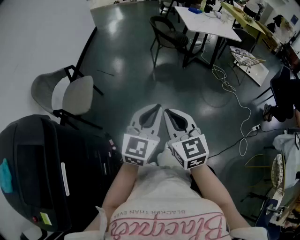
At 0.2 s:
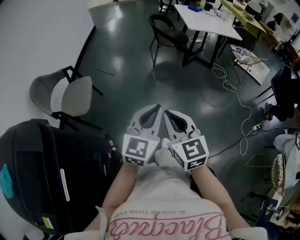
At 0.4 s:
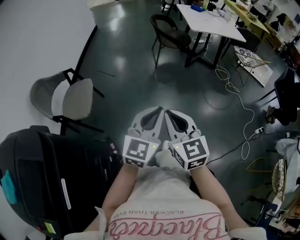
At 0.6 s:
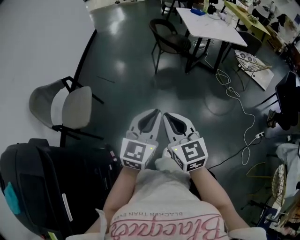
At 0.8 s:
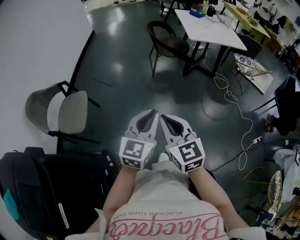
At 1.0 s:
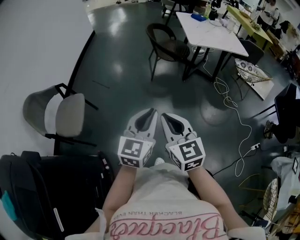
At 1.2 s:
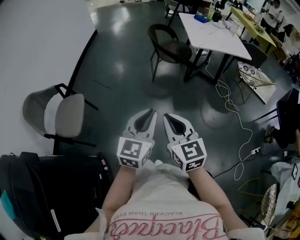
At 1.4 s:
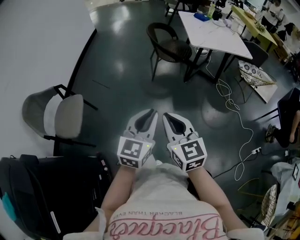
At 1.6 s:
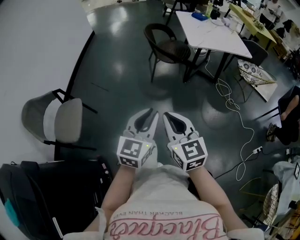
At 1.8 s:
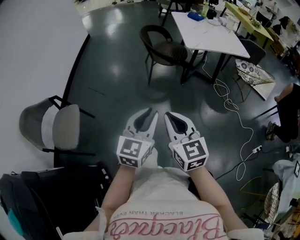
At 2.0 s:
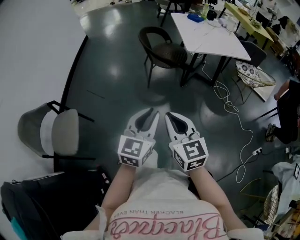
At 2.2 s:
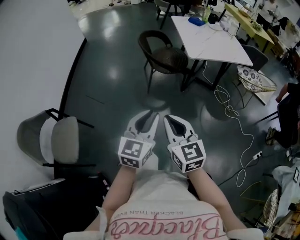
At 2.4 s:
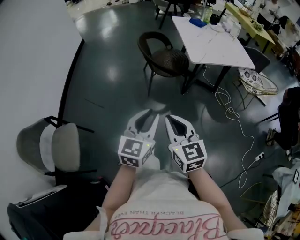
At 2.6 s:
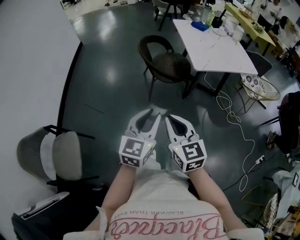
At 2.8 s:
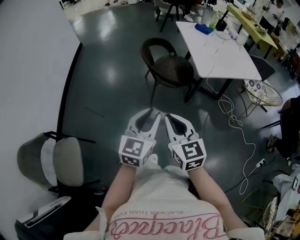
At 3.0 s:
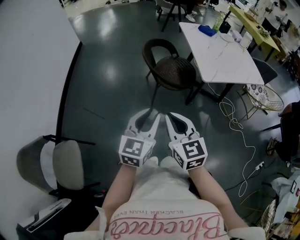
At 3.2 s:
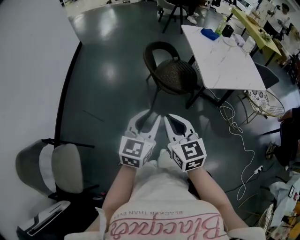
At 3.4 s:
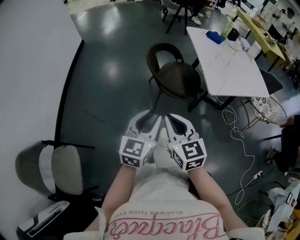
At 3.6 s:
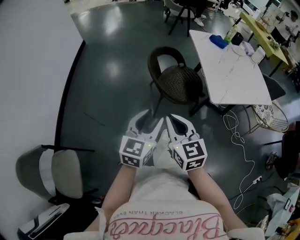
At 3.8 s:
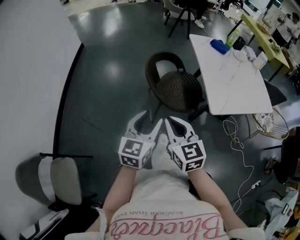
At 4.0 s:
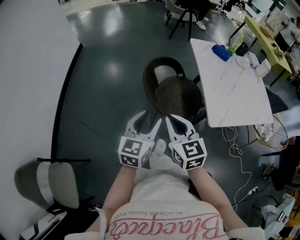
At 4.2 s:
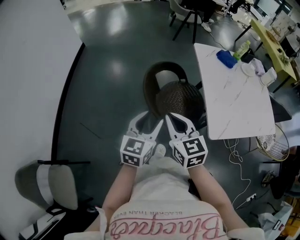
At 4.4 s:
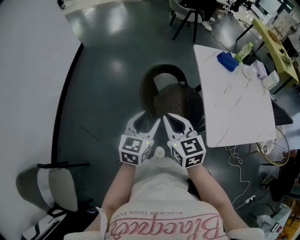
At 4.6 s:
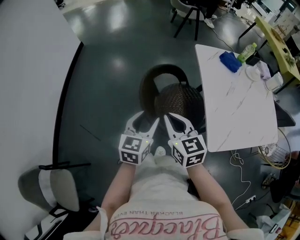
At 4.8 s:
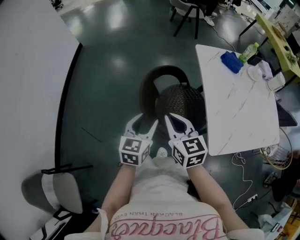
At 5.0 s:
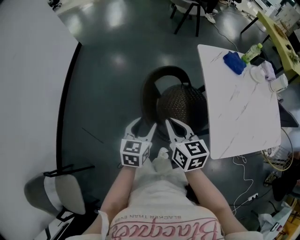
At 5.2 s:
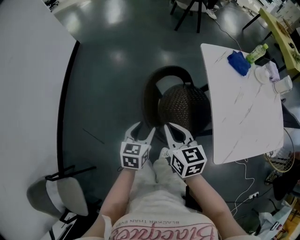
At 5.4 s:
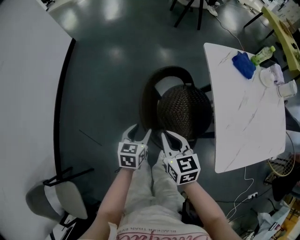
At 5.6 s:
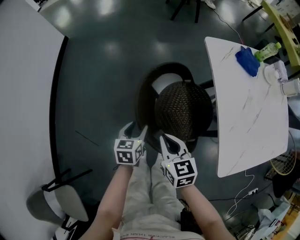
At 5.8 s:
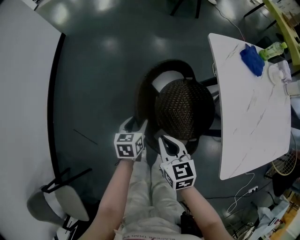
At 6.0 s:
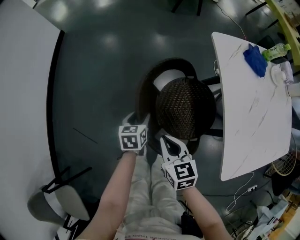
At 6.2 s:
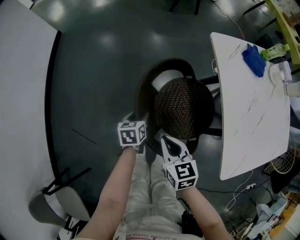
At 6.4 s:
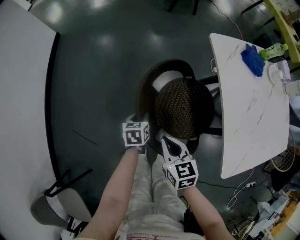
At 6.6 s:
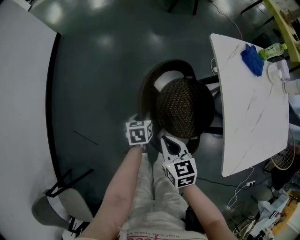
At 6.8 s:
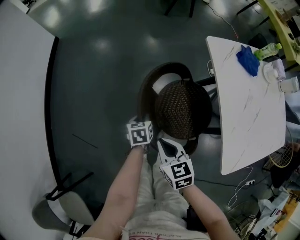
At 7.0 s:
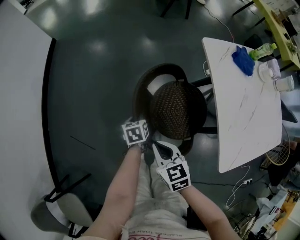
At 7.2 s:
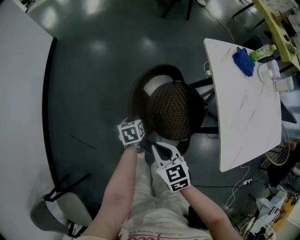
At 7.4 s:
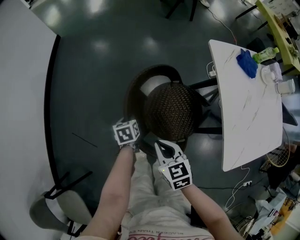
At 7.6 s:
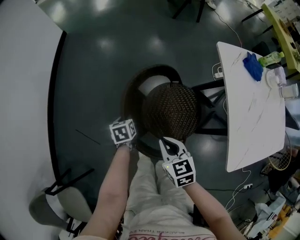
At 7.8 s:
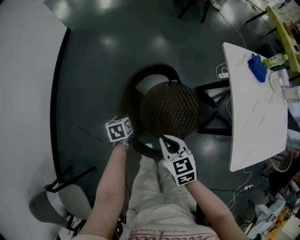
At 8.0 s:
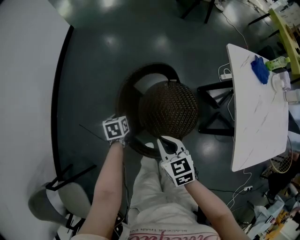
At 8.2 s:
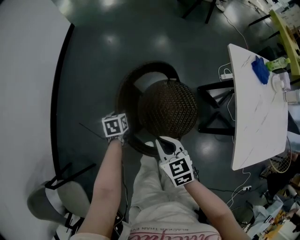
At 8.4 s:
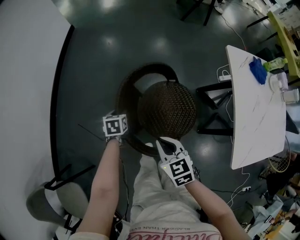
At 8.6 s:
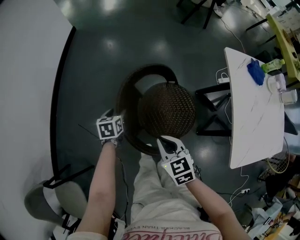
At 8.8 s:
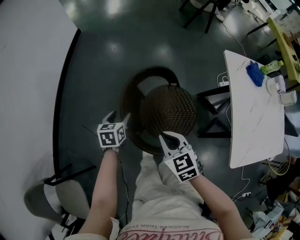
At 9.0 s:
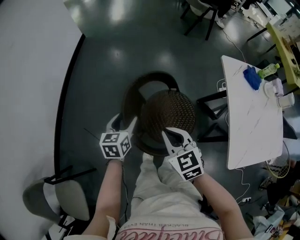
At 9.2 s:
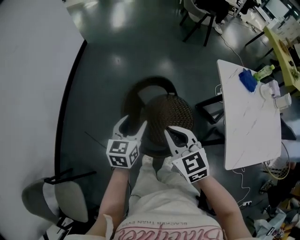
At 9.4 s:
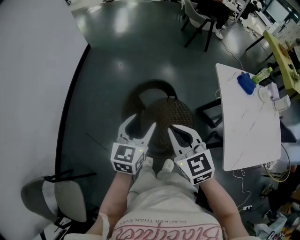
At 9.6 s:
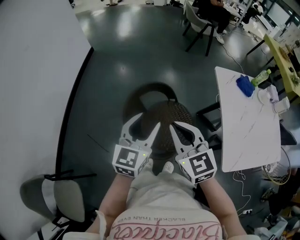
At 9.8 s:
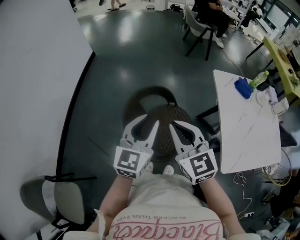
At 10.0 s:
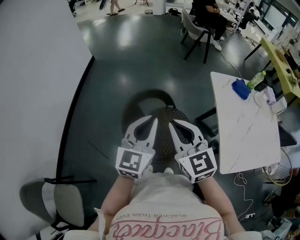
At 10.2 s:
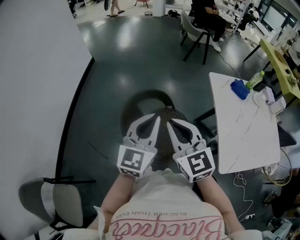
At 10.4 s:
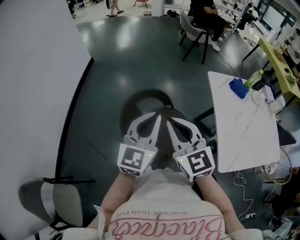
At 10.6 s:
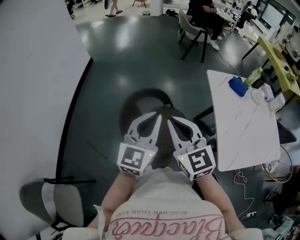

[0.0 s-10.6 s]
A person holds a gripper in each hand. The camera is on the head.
0.0 to 1.6 s: Both grippers travel together forward, some 30 cm.
1.6 to 3.0 s: The two grippers travel together, forward, about 40 cm.
3.0 to 4.6 s: The two grippers travel together, forward, approximately 40 cm. The left gripper opens its fingers.
4.6 to 6.0 s: Both grippers travel together downward and forward, approximately 30 cm. The left gripper swivels roughly 30 degrees.
6.0 to 7.6 s: The left gripper heads to the left, covering roughly 15 cm, and closes. Meanwhile the right gripper goes some 10 cm to the left.
7.6 to 9.0 s: The right gripper travels upward and to the left by about 10 cm, and changes its angle by roughly 20 degrees. The left gripper shifts approximately 20 cm upward, swivels about 30 degrees, and opens.
9.0 to 10.6 s: The left gripper shifts some 30 cm upward and to the right, points its fingers about 30 degrees further upward, and closes; the right gripper is displaced upward by approximately 15 cm, and swivels some 30 degrees.

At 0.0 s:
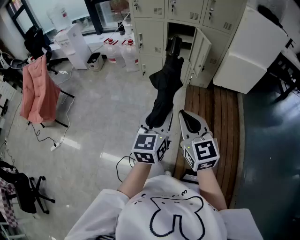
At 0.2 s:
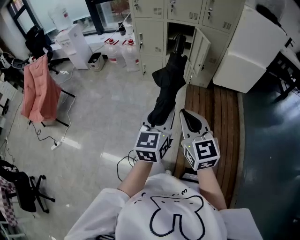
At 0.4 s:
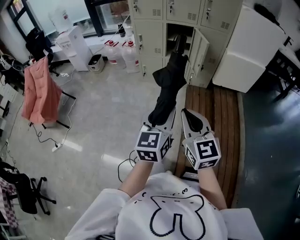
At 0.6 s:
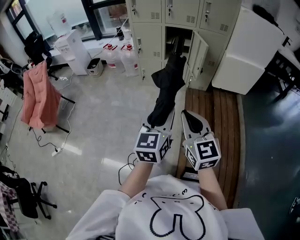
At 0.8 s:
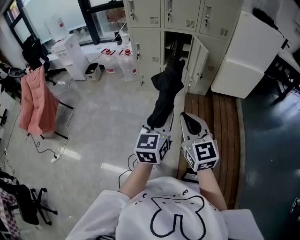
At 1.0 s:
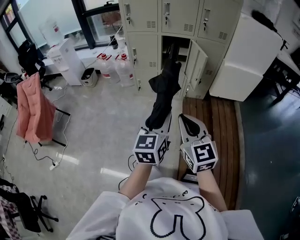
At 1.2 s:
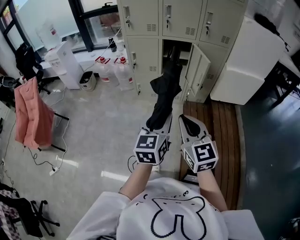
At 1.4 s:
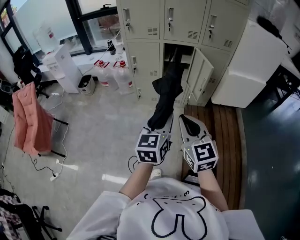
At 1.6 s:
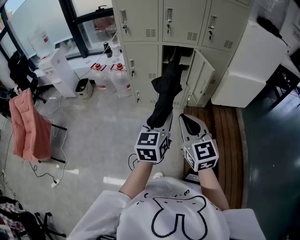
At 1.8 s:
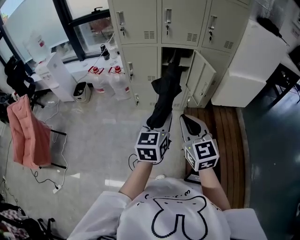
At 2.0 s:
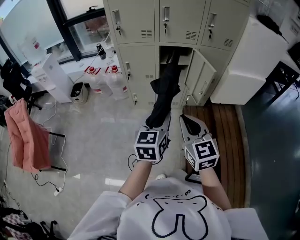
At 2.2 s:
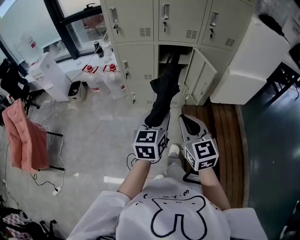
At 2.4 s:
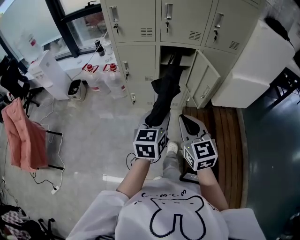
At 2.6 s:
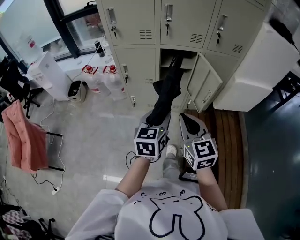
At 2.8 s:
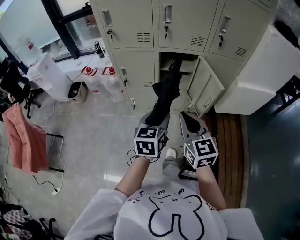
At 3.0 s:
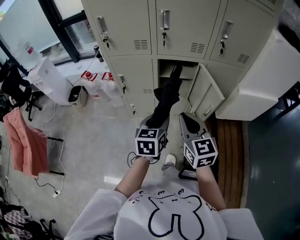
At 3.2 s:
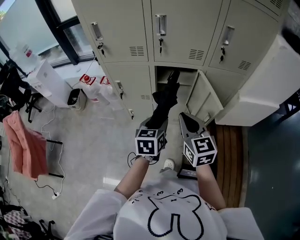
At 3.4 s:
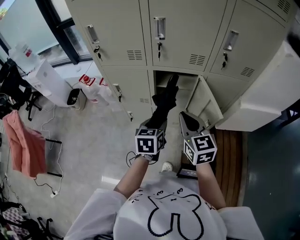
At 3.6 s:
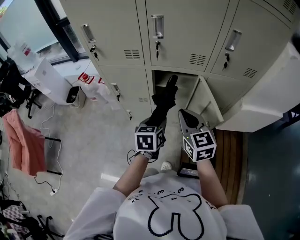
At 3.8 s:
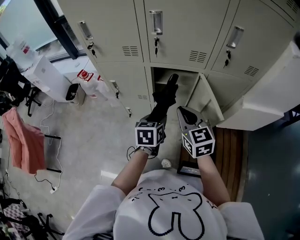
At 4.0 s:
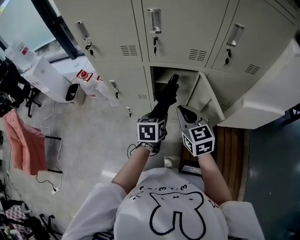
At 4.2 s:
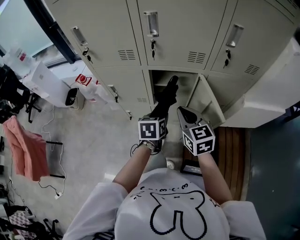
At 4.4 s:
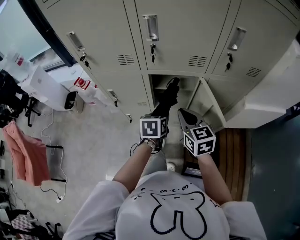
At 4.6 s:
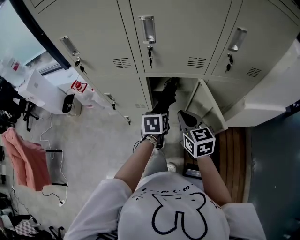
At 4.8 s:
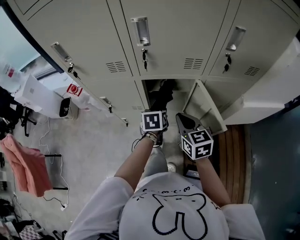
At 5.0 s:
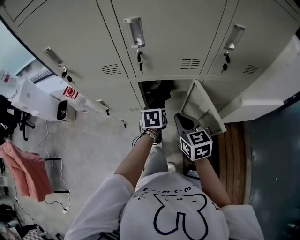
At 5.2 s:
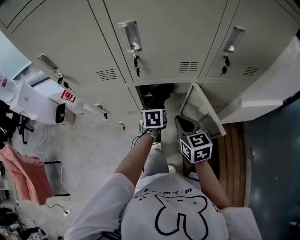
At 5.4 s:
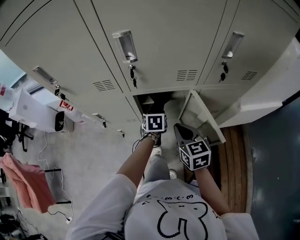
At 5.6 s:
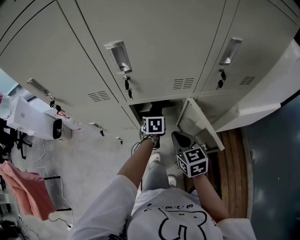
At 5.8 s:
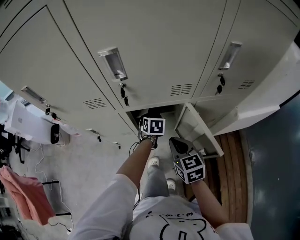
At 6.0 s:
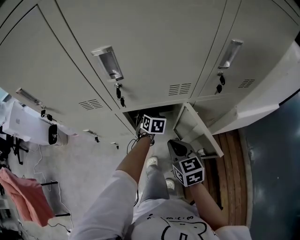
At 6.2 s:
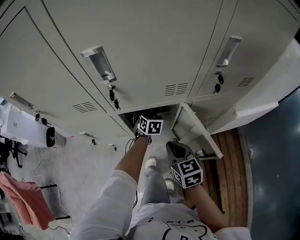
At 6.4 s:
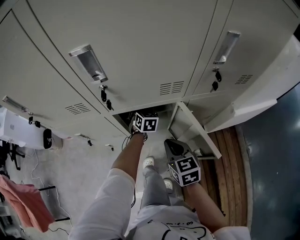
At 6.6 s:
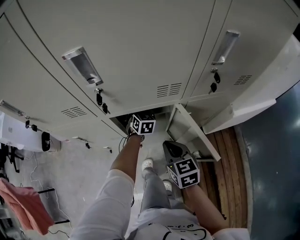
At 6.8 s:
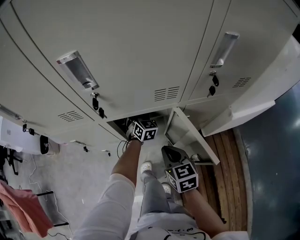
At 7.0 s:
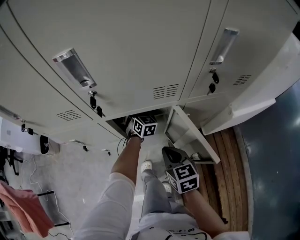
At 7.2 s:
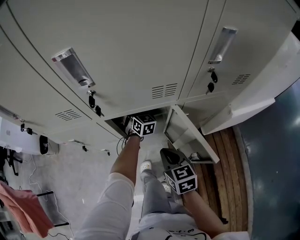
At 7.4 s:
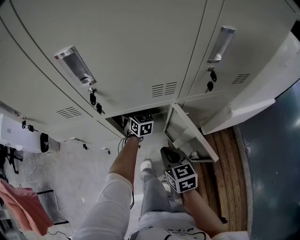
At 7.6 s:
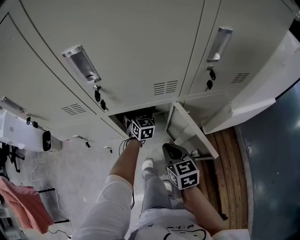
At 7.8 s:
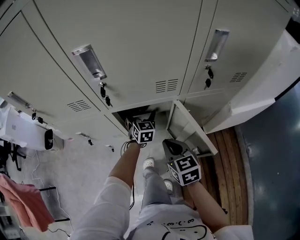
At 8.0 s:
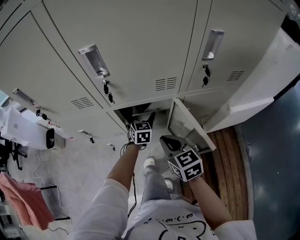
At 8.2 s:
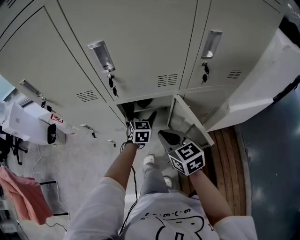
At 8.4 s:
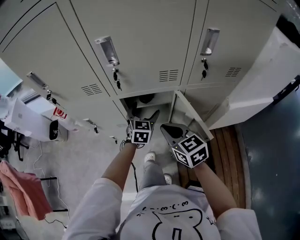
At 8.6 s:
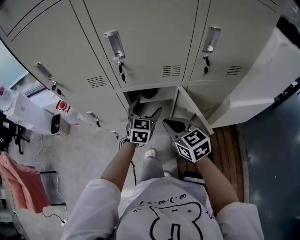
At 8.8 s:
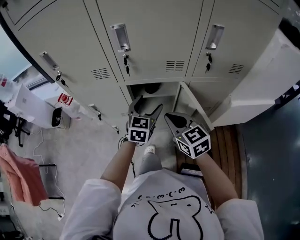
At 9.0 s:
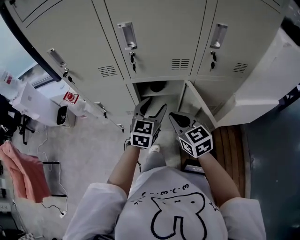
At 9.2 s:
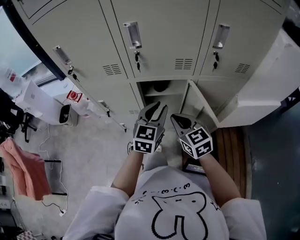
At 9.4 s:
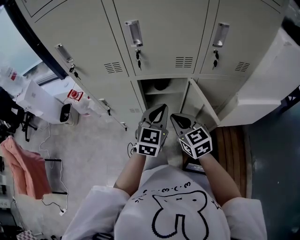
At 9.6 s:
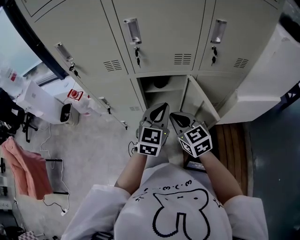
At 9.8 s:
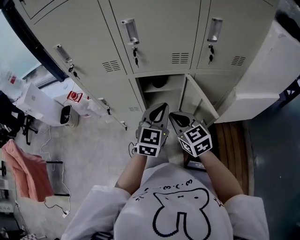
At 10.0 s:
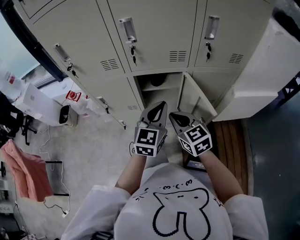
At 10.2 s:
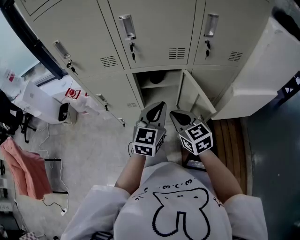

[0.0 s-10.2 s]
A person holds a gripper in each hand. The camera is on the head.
0.0 to 1.4 s: The grippers both shift forward by roughly 20 cm.
1.4 to 3.0 s: Both grippers move forward, approximately 30 cm.
3.0 to 4.4 s: The right gripper travels forward by approximately 20 cm; the left gripper is displaced forward and downward by about 20 cm.
4.4 to 5.8 s: The right gripper heads downward, covering some 5 cm, while the left gripper heads forward and downward, covering some 20 cm, and swivels about 20 degrees.
5.8 to 7.2 s: The right gripper travels downward by roughly 5 cm. Meanwhile the left gripper shifts approximately 10 cm forward, and swivels about 30 degrees.
7.2 to 8.8 s: The left gripper moves backward and upward, roughly 25 cm, and rotates roughly 30 degrees. Meanwhile the right gripper is displaced upward by about 15 cm, and swivels roughly 20 degrees.
8.8 to 10.2 s: The right gripper travels backward by roughly 5 cm. The left gripper goes some 15 cm backward and upward, and closes.

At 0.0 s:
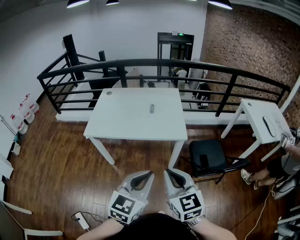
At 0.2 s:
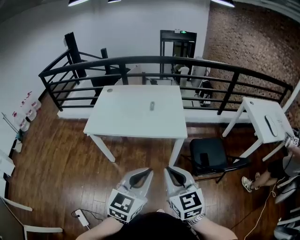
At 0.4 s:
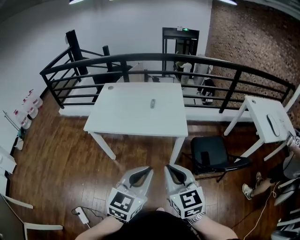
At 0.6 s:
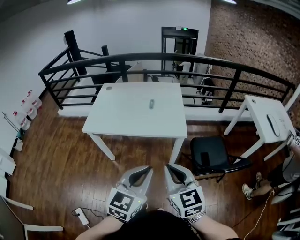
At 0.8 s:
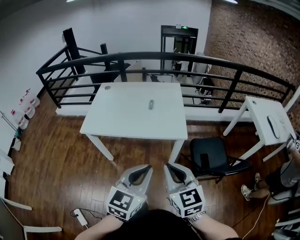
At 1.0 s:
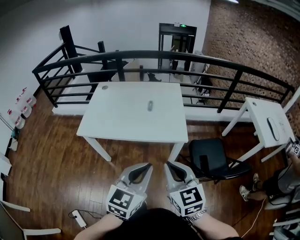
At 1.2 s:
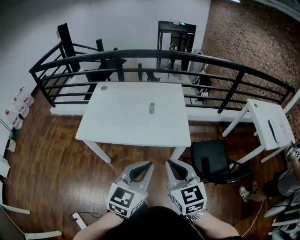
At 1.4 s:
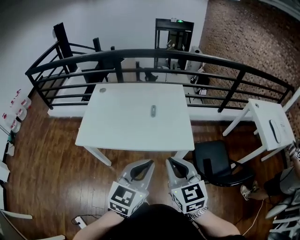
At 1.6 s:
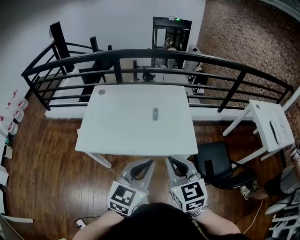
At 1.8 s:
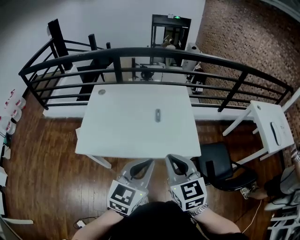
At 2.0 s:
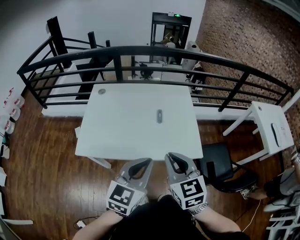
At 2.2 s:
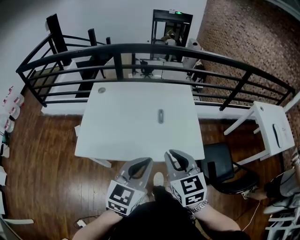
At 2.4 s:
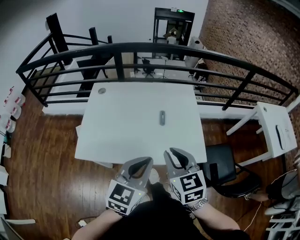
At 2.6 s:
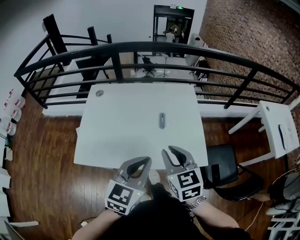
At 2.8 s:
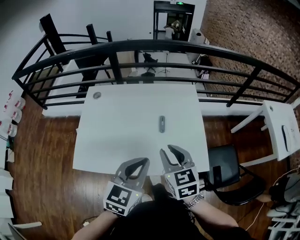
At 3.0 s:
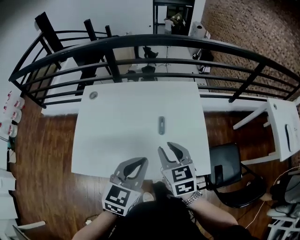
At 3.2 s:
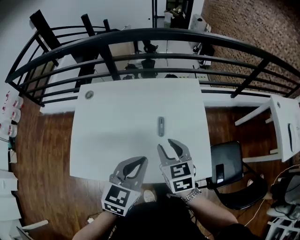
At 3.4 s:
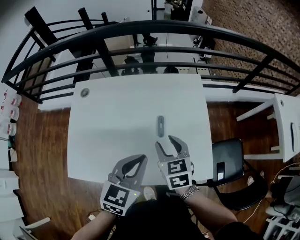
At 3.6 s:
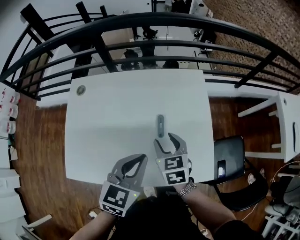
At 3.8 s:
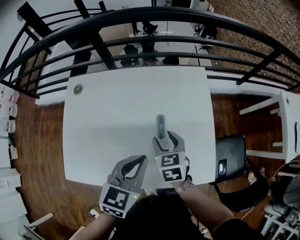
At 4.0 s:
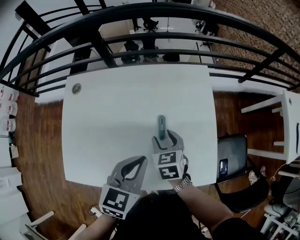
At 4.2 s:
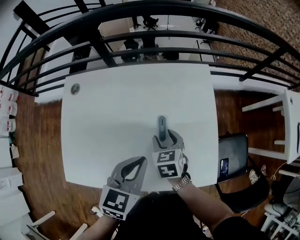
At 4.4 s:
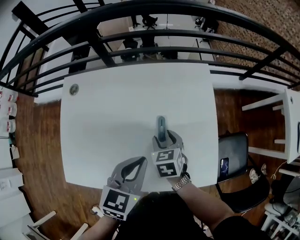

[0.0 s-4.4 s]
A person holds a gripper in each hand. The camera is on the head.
0.0 to 1.4 s: Both grippers move forward, about 20 cm.
1.4 to 3.0 s: Both grippers travel together forward, some 30 cm. The right gripper opens its fingers.
3.0 to 4.4 s: The right gripper goes roughly 25 cm downward and forward, changes its angle by about 20 degrees, and opens; the left gripper shifts about 15 cm forward and downward.
